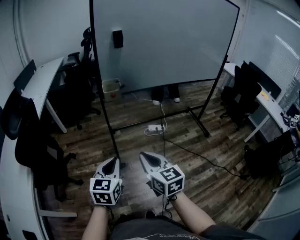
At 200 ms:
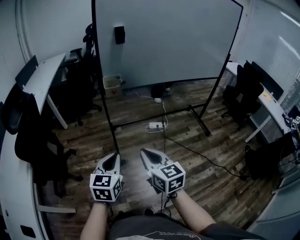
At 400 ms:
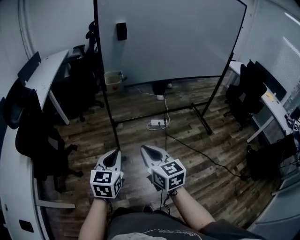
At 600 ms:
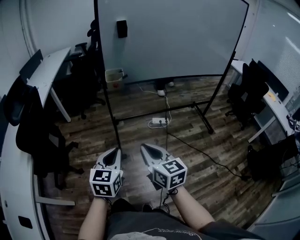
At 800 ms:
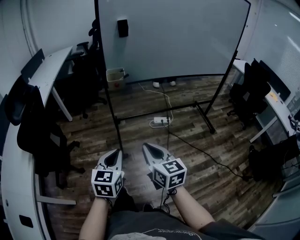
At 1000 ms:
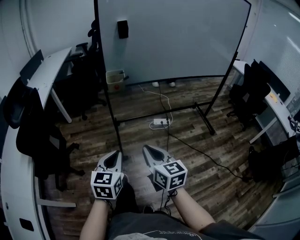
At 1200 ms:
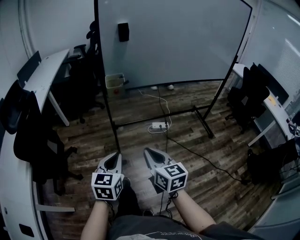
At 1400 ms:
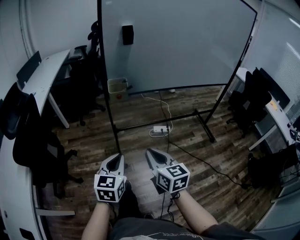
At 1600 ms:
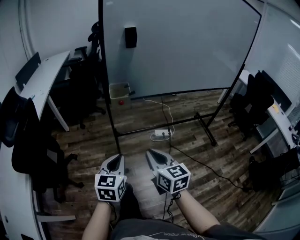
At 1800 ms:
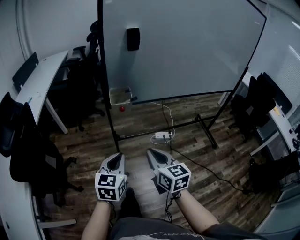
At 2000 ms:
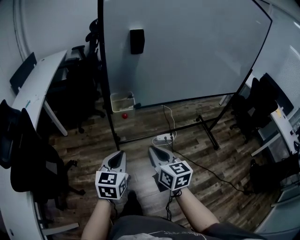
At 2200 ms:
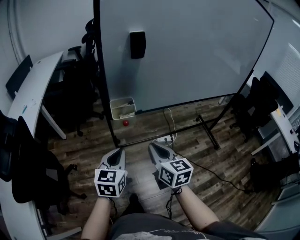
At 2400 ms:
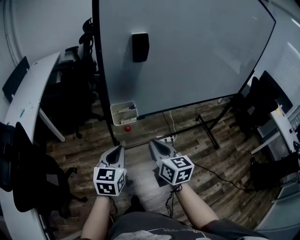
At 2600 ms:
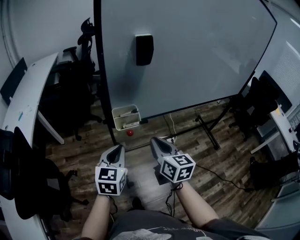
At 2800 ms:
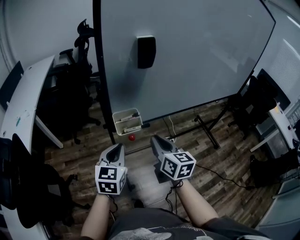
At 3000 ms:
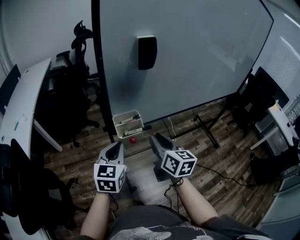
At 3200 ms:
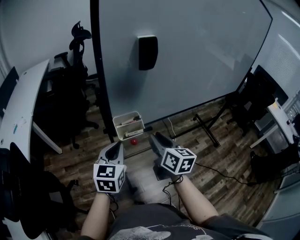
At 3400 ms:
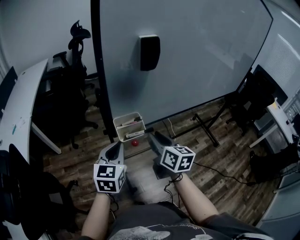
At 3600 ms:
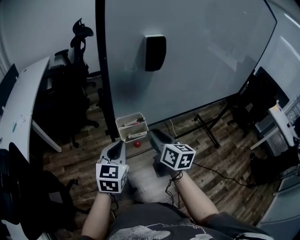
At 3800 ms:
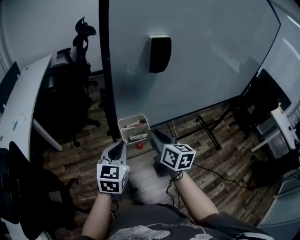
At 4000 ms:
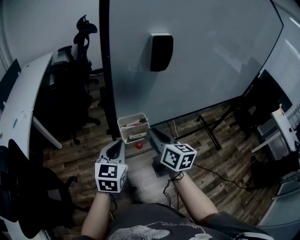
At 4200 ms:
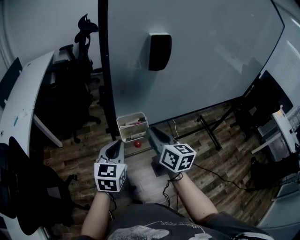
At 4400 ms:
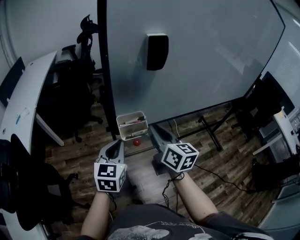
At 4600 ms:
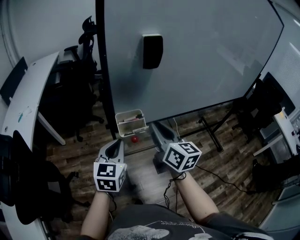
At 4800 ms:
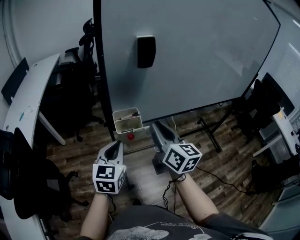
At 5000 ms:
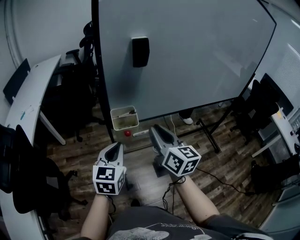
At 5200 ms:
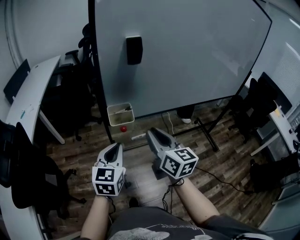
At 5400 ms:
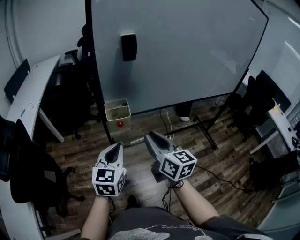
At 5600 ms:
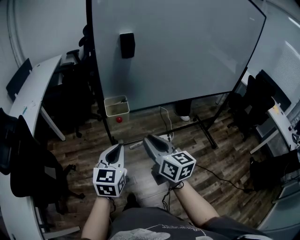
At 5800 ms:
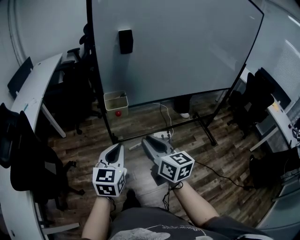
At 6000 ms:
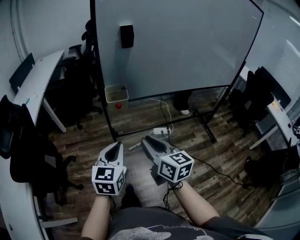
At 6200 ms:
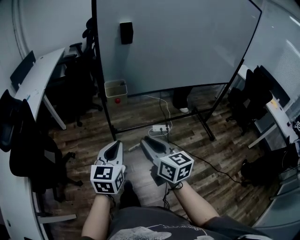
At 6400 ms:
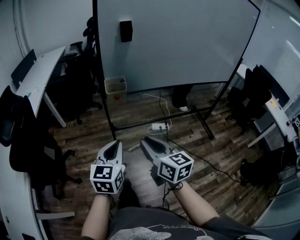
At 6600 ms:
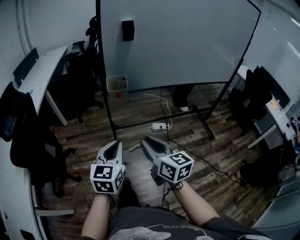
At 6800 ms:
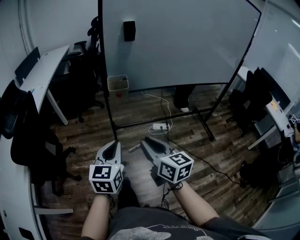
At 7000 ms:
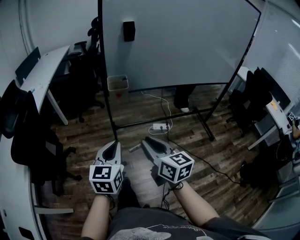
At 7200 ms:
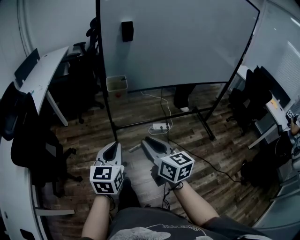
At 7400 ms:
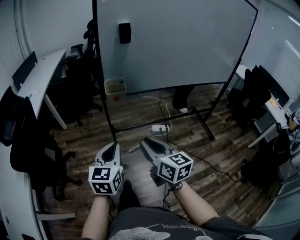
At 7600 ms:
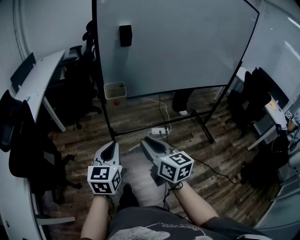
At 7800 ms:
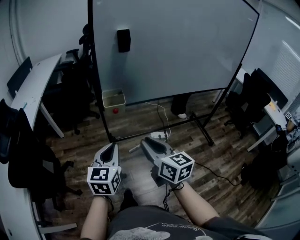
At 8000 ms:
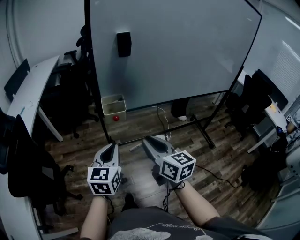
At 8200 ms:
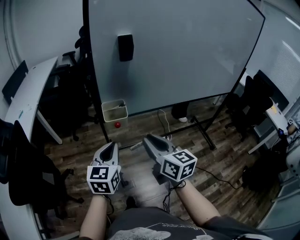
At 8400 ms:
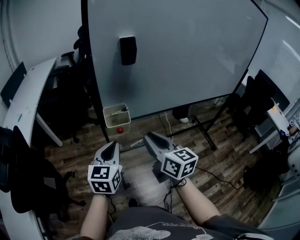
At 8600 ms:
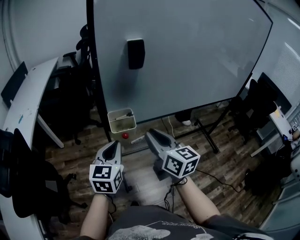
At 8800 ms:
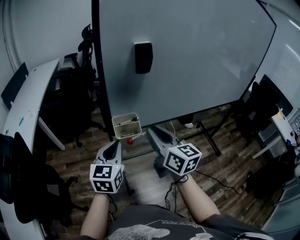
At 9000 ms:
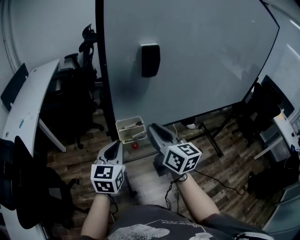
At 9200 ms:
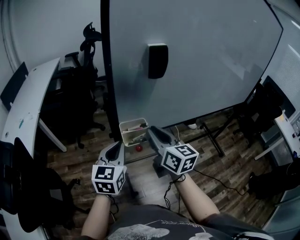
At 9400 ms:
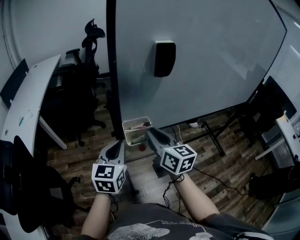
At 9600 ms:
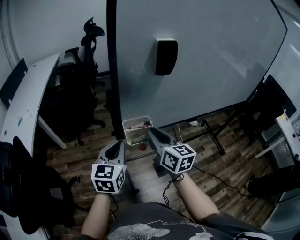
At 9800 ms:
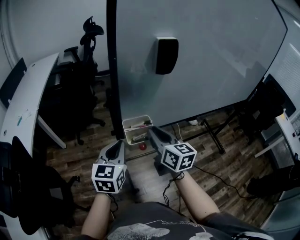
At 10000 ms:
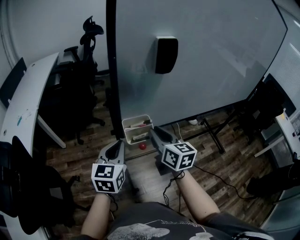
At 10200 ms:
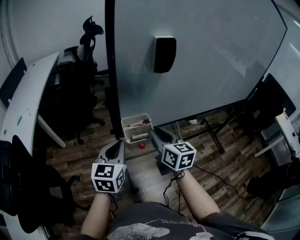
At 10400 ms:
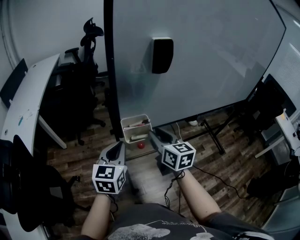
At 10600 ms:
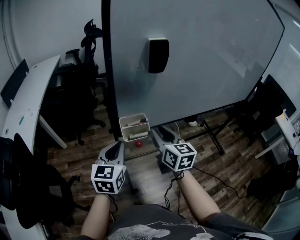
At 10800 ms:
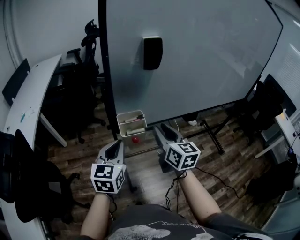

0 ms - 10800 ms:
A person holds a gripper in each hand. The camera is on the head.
0 ms - 1600 ms: The two grippers go some 15 cm forward.
1600 ms - 3000 ms: The grippers both shift forward by roughly 30 cm.
3000 ms - 4600 ms: The right gripper is displaced upward by some 5 cm.
4600 ms - 6200 ms: Both grippers travel together backward, about 25 cm.
6200 ms - 7800 ms: The grippers make only small movements.
7800 ms - 9200 ms: Both grippers move forward, some 25 cm.
9200 ms - 10800 ms: The right gripper shifts about 5 cm to the right.

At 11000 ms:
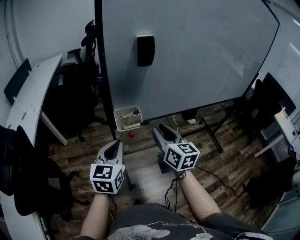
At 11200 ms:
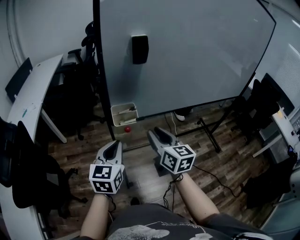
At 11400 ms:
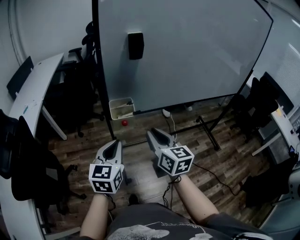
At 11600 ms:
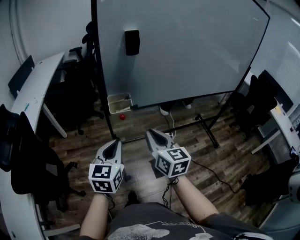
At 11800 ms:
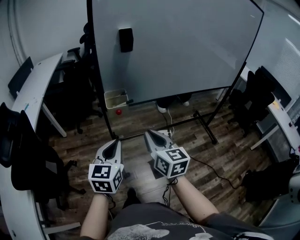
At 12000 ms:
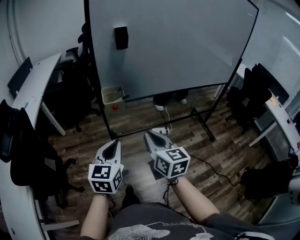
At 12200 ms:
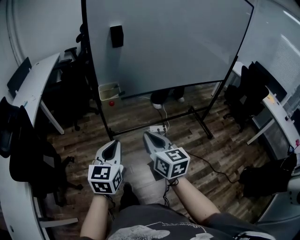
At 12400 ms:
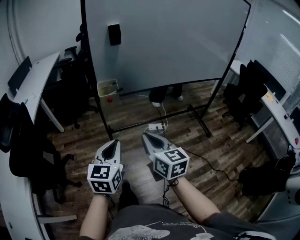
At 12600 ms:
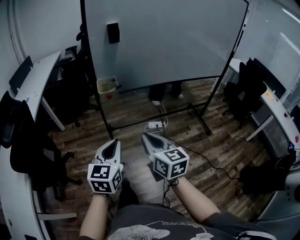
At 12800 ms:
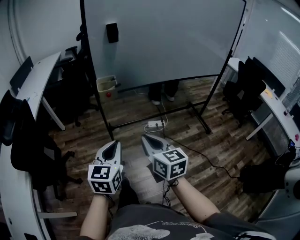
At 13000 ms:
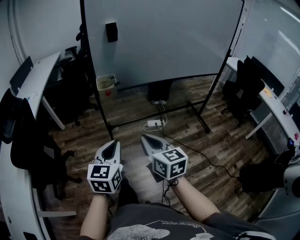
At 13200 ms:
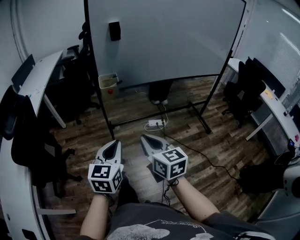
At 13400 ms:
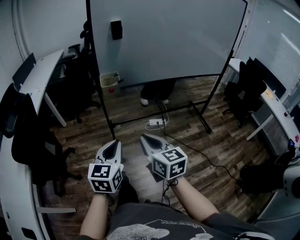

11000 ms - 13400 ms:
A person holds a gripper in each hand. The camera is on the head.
11000 ms - 12200 ms: Both grippers move backward, some 20 cm. The right gripper closes its fingers.
12200 ms - 13400 ms: Both grippers travel together backward, about 10 cm.

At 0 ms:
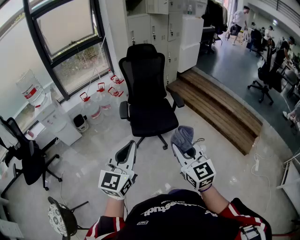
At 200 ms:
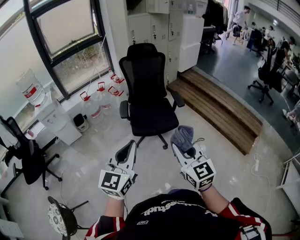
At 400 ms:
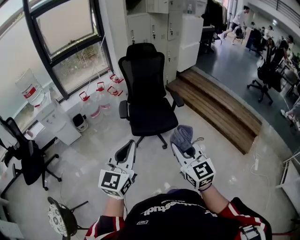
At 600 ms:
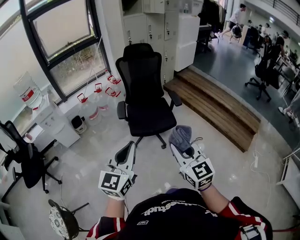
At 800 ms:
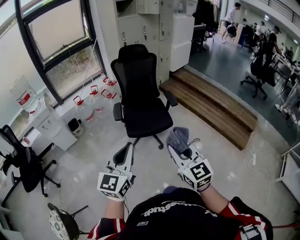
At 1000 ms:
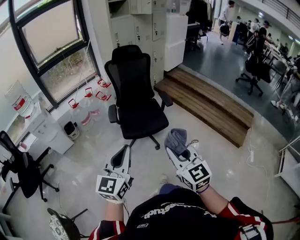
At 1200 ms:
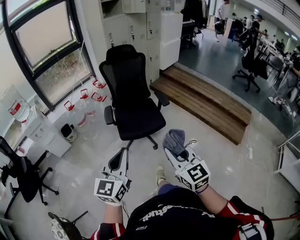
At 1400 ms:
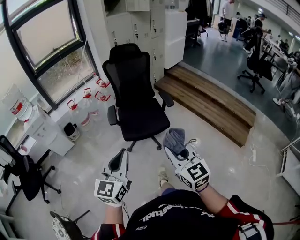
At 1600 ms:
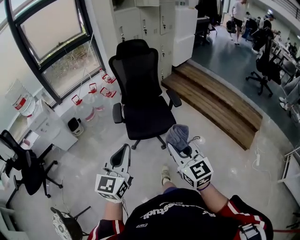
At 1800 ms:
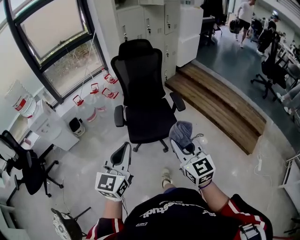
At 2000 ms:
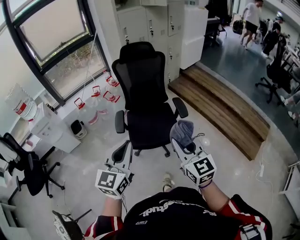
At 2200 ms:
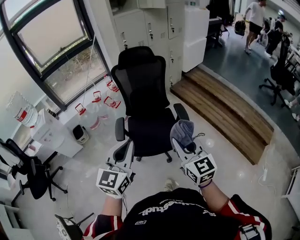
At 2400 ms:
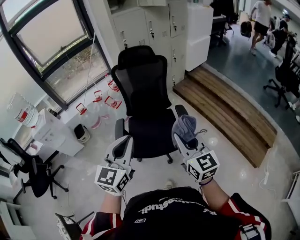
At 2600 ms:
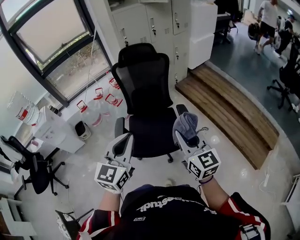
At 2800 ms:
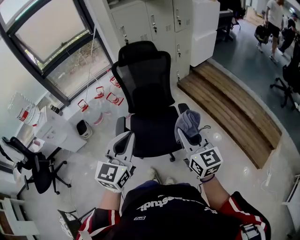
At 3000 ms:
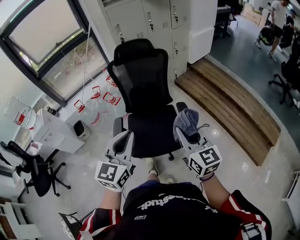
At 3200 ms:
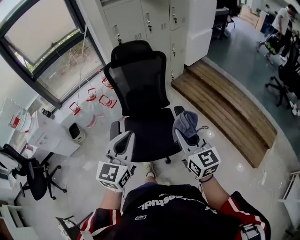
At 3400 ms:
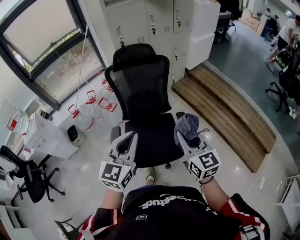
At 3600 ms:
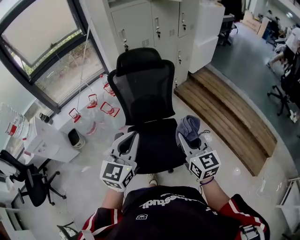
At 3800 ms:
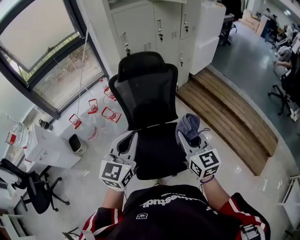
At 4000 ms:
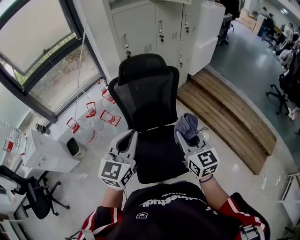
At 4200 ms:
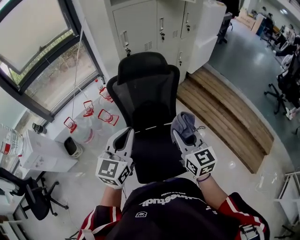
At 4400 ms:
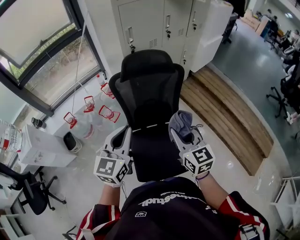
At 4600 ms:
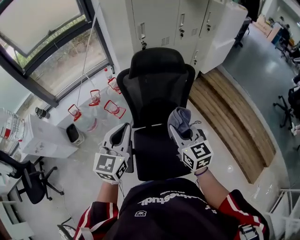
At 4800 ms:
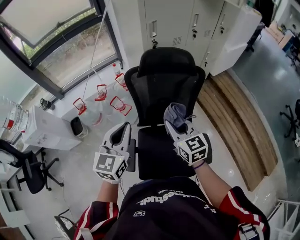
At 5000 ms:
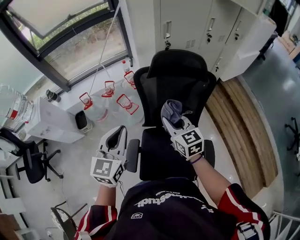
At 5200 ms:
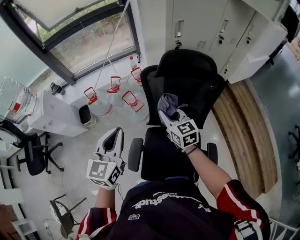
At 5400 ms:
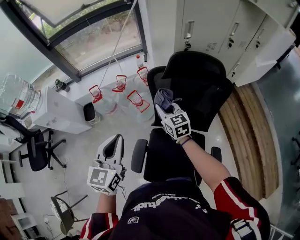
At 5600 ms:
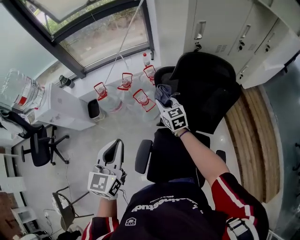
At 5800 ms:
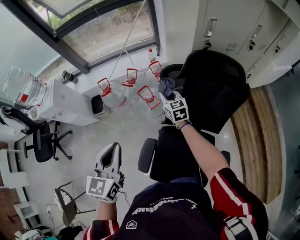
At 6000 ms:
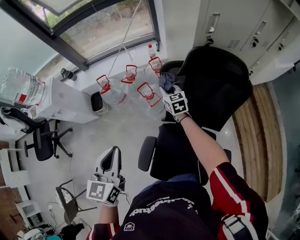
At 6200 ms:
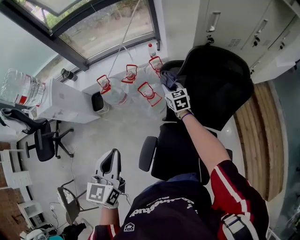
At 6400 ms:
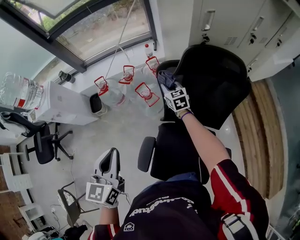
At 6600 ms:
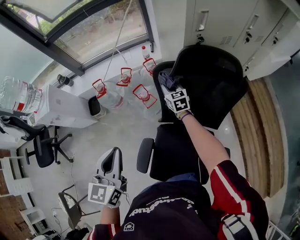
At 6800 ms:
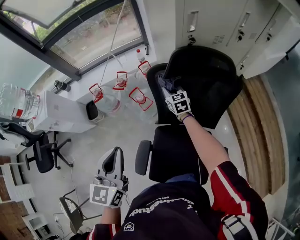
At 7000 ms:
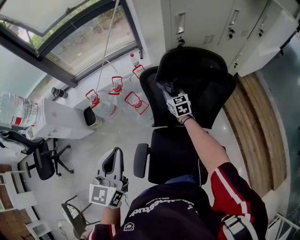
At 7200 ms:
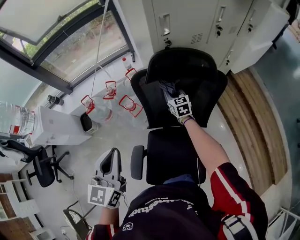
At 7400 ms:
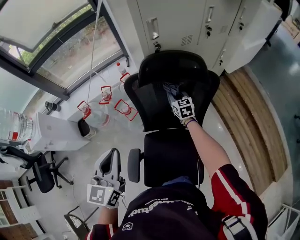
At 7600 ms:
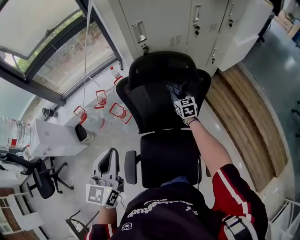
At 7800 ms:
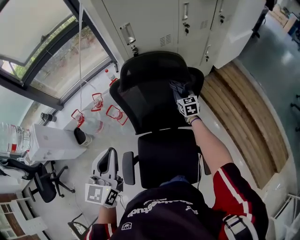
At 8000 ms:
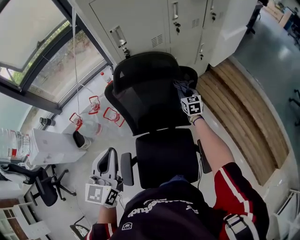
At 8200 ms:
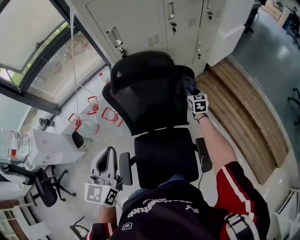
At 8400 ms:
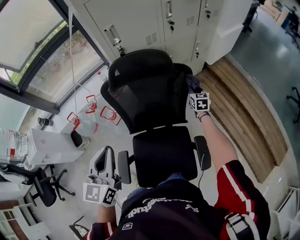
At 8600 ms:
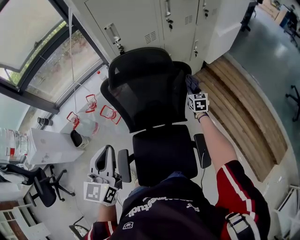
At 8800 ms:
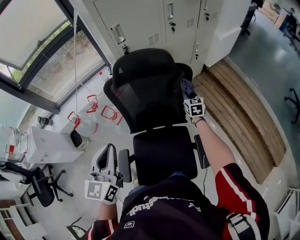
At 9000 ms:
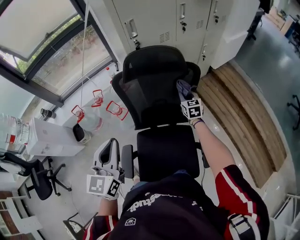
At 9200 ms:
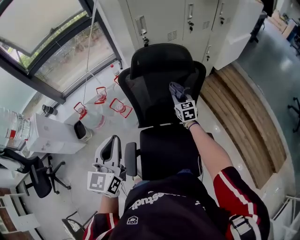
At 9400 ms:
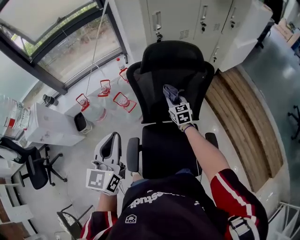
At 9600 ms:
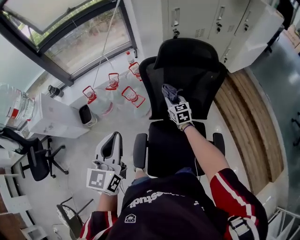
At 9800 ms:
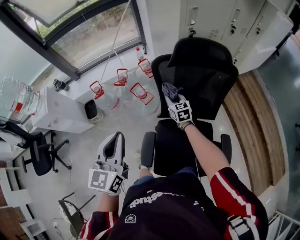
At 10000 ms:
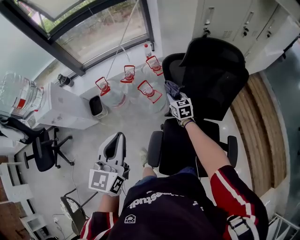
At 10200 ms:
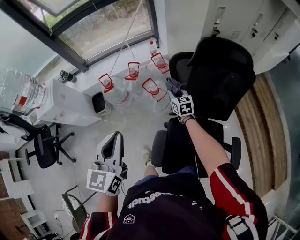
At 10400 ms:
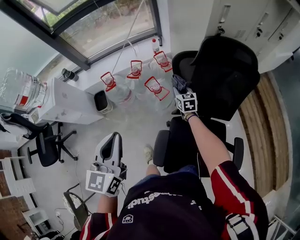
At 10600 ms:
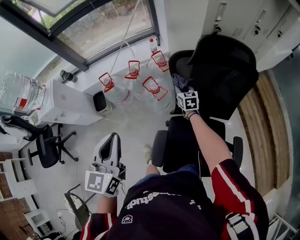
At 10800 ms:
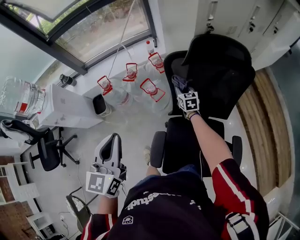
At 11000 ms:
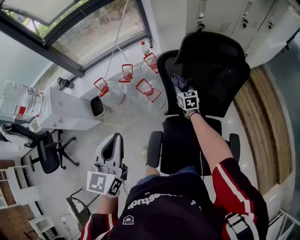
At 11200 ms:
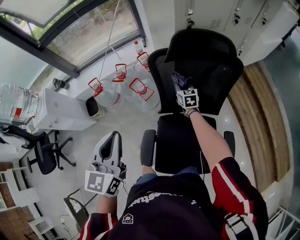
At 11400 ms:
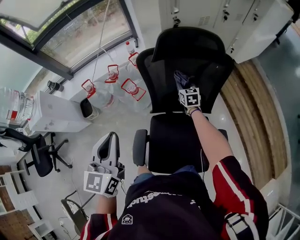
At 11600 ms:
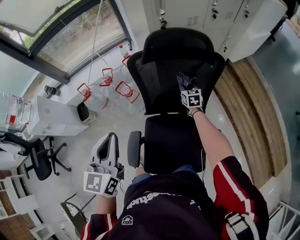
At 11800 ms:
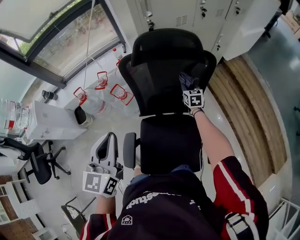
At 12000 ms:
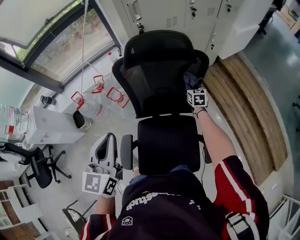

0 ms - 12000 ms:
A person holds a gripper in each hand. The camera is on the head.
0 ms - 1600 ms: Both grippers travel together forward, some 10 cm.
1600 ms - 3000 ms: Both grippers travel together forward, some 40 cm.
3000 ms - 4400 ms: The two grippers go some 40 cm forward and to the left.
4400 ms - 6000 ms: The right gripper ends up about 50 cm from where it was, and turns by about 30 degrees. The left gripper moves about 20 cm, and changes its angle by roughly 40 degrees.
6000 ms - 7600 ms: The left gripper moves to the right, approximately 15 cm. The right gripper moves to the right, roughly 30 cm, and changes its angle by some 20 degrees.
7600 ms - 9000 ms: The left gripper ends up roughly 5 cm from where it was. The right gripper moves to the right and backward, some 10 cm.
9000 ms - 10400 ms: Both grippers move to the left, about 35 cm.
10400 ms - 12000 ms: The left gripper goes some 25 cm to the right. The right gripper moves to the right, about 40 cm.
